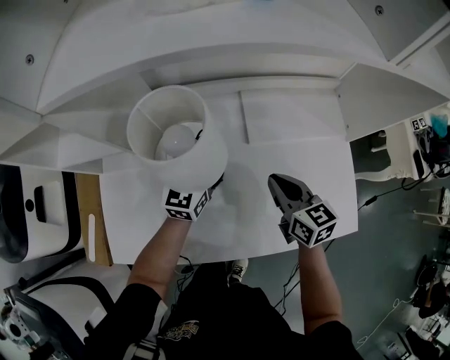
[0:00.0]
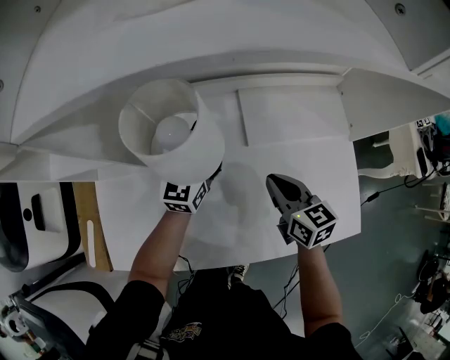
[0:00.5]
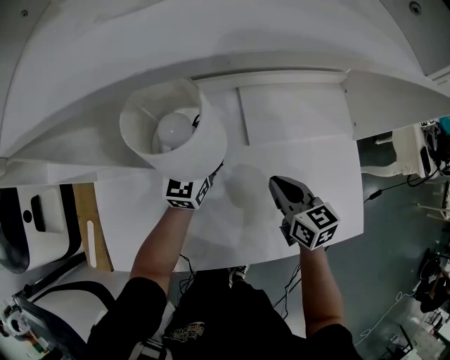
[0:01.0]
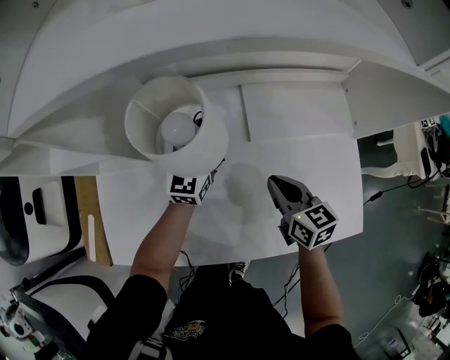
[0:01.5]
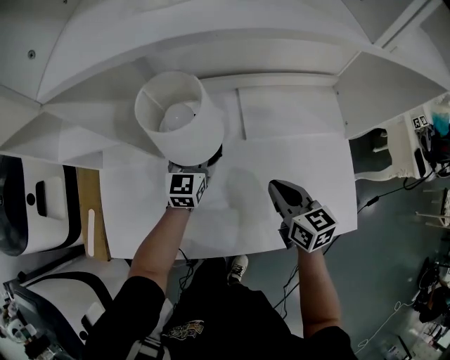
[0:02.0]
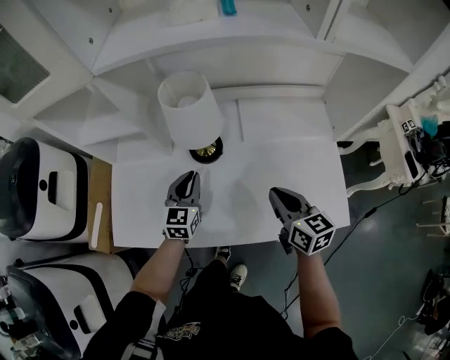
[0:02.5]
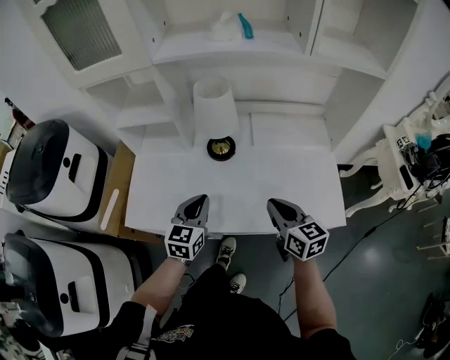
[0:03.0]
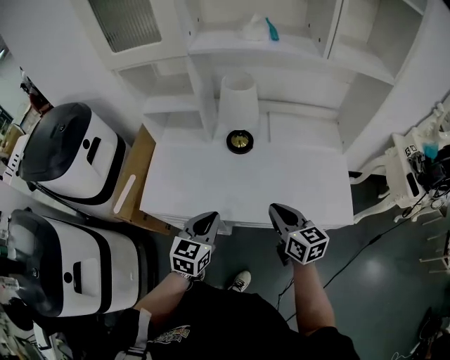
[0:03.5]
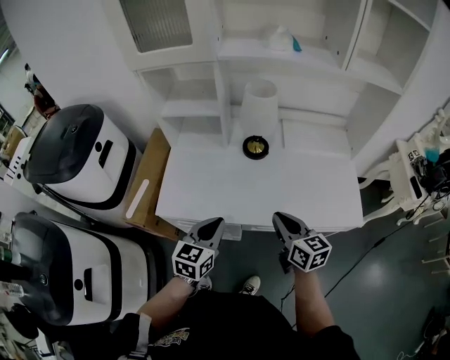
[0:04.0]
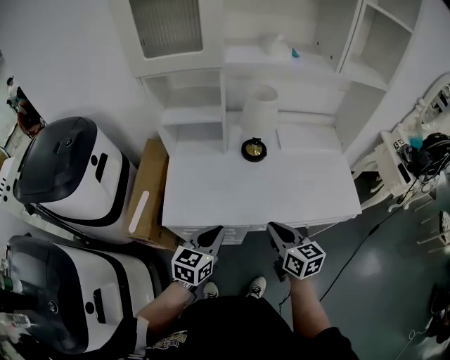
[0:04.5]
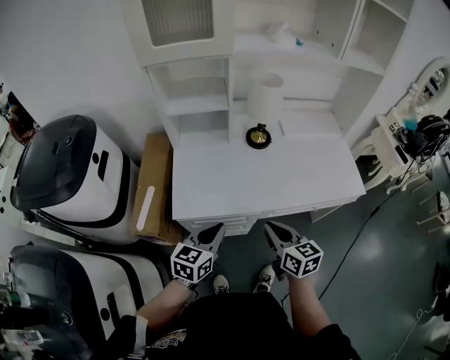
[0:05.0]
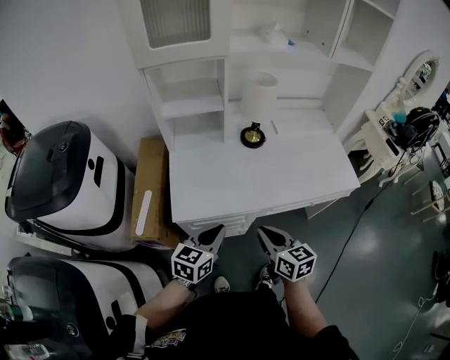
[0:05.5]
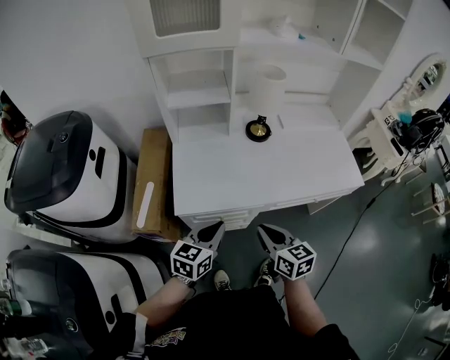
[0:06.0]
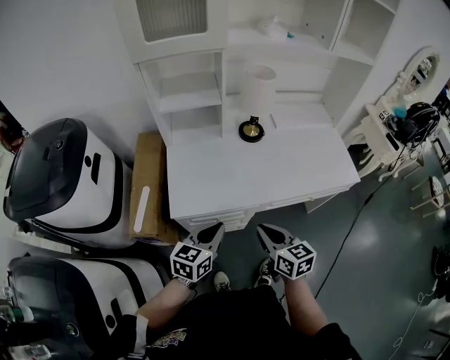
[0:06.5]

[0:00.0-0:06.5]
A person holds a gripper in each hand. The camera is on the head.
0:00.0 to 0:02.0: There are only small adjustments of the grippers.
0:02.0 to 0:04.5: The two grippers go about 40 cm backward and to the left. The left gripper closes its fingers.
0:04.5 to 0:06.5: The left gripper heads to the left, covering about 5 cm; the right gripper goes approximately 10 cm to the left and backward.

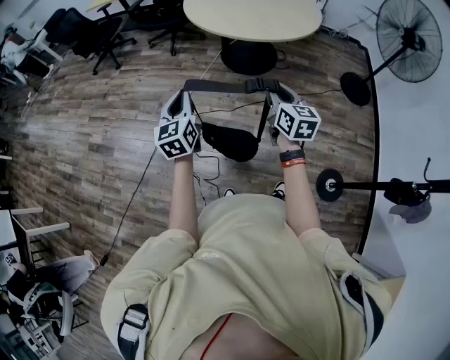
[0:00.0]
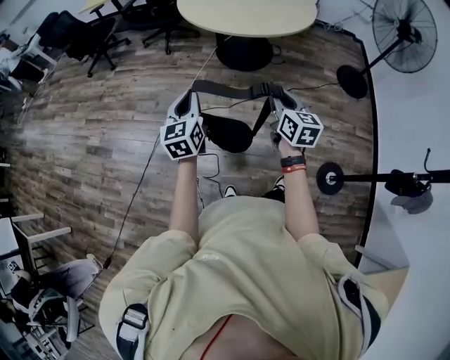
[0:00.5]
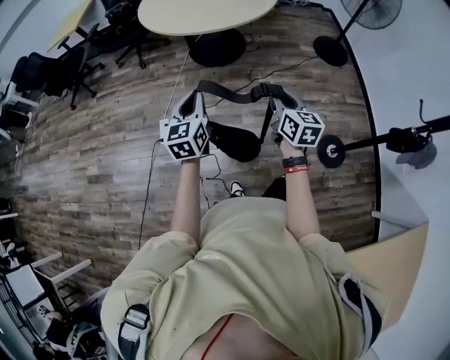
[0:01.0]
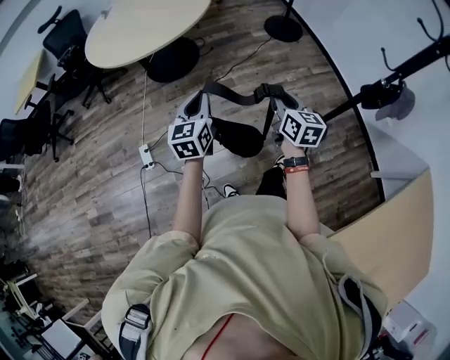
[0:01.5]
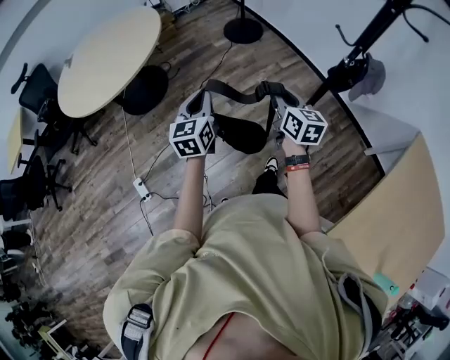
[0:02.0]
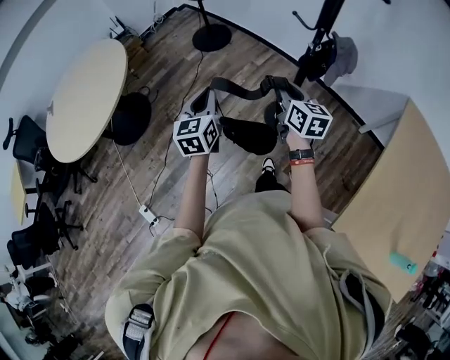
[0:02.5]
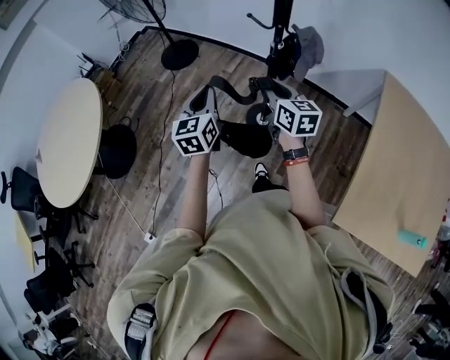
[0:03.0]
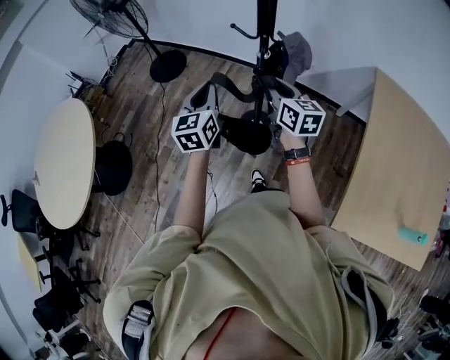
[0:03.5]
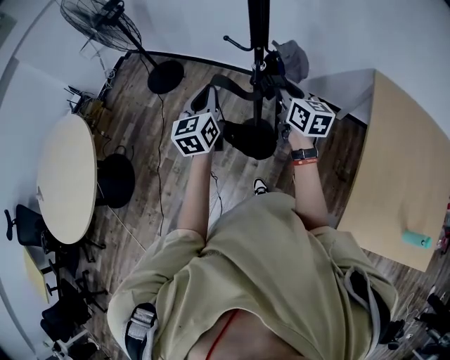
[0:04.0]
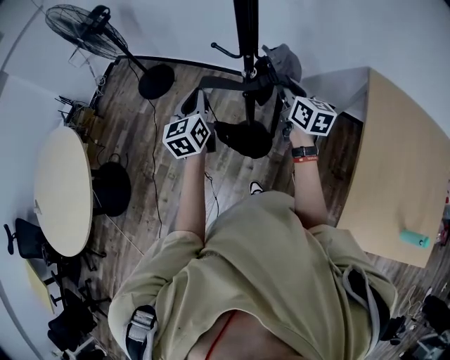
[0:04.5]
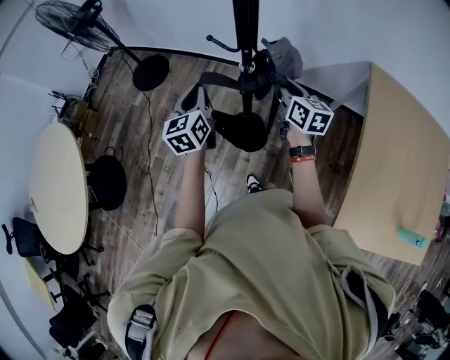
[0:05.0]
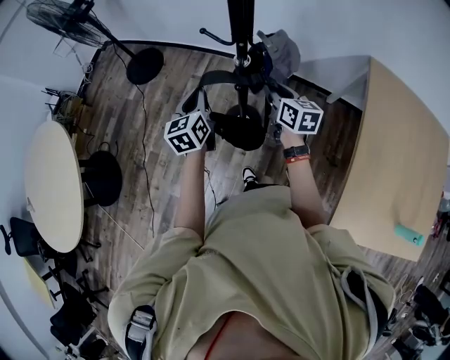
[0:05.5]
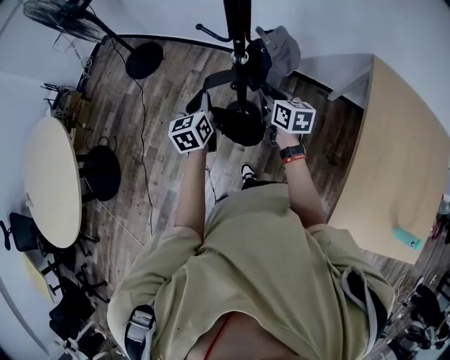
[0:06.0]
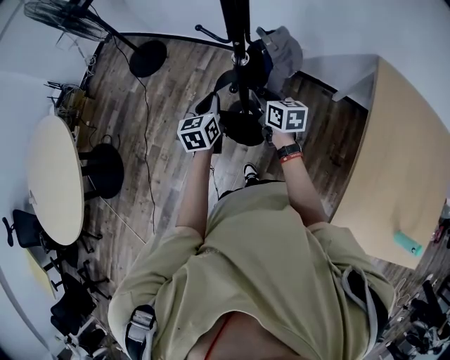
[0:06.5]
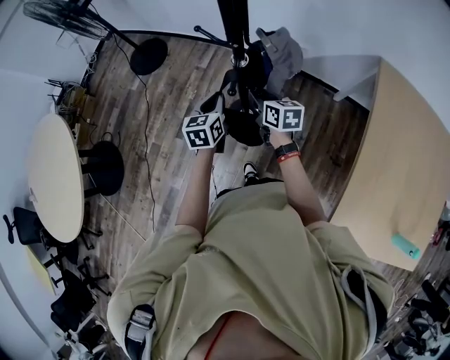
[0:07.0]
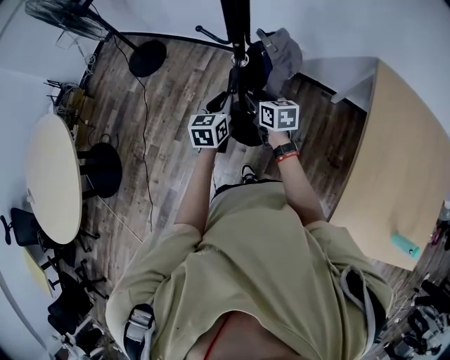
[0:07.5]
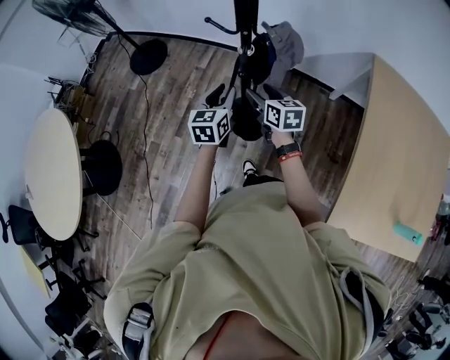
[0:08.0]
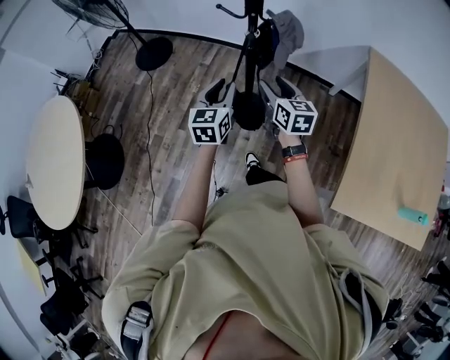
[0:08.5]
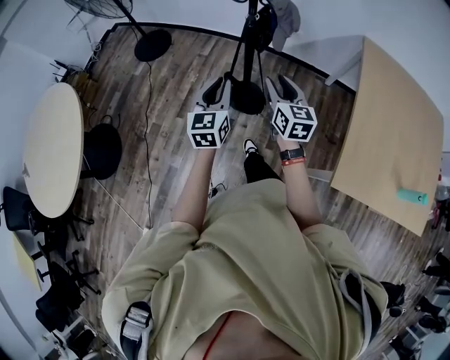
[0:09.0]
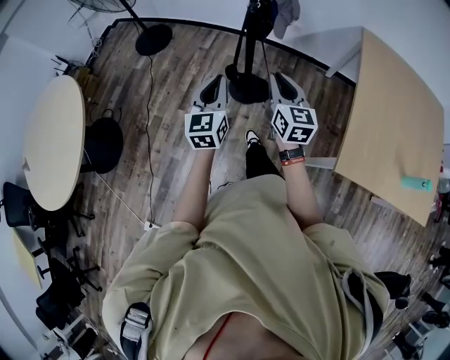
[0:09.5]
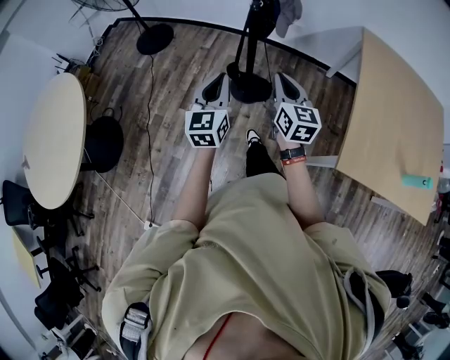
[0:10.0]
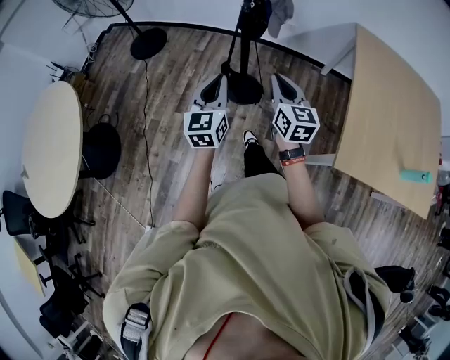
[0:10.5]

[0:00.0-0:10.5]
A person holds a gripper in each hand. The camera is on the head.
0:00.0 to 0:02.0: The pair of grippers is taken about 40 cm. The left gripper swivels some 50 degrees. The right gripper swivels roughly 50 degrees.
0:02.0 to 0:04.0: The left gripper changes place by some 40 cm, and turns by roughly 30 degrees. The right gripper changes place by approximately 40 cm, and turns by about 30 degrees.
0:04.0 to 0:06.5: Both grippers travel together downward and forward, approximately 20 cm.
0:06.5 to 0:08.5: Both grippers travel together backward and upward, approximately 20 cm. The right gripper opens its fingers. The left gripper opens.
0:08.5 to 0:10.5: Both grippers travel together backward, roughly 20 cm. The left gripper closes, while the right gripper closes up.

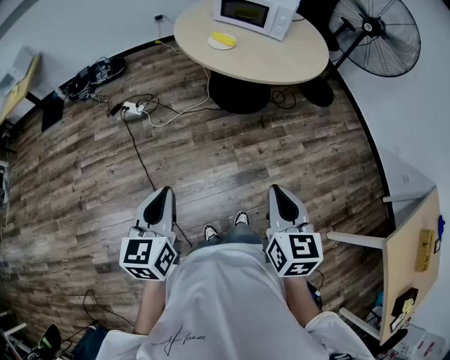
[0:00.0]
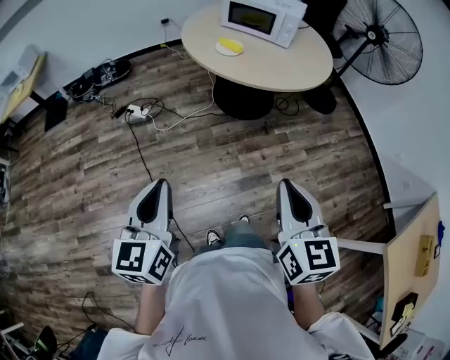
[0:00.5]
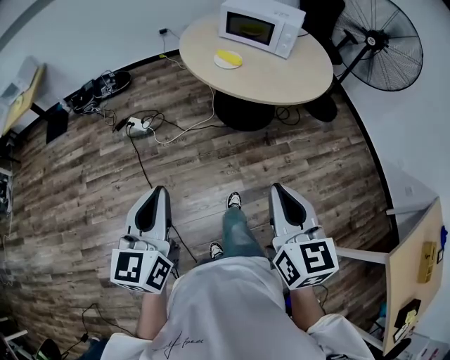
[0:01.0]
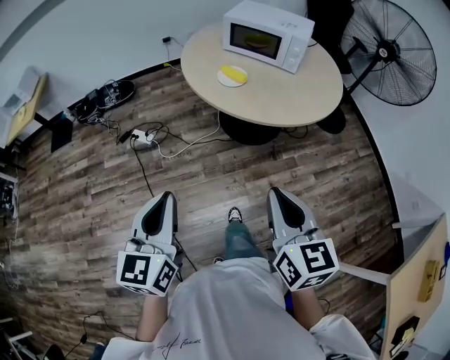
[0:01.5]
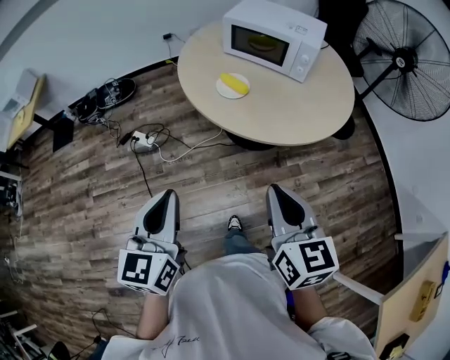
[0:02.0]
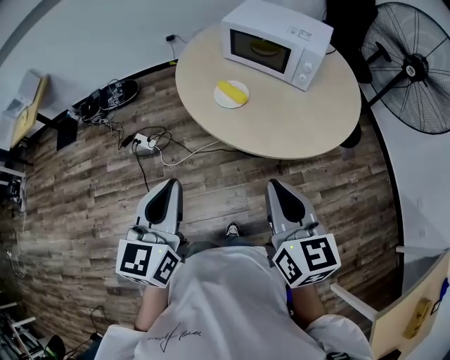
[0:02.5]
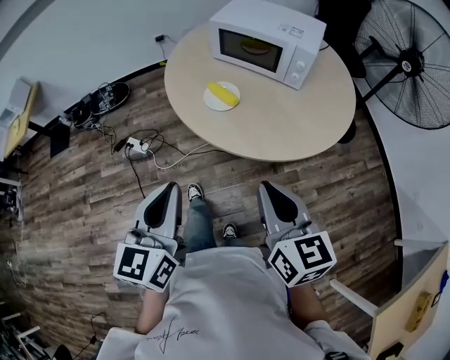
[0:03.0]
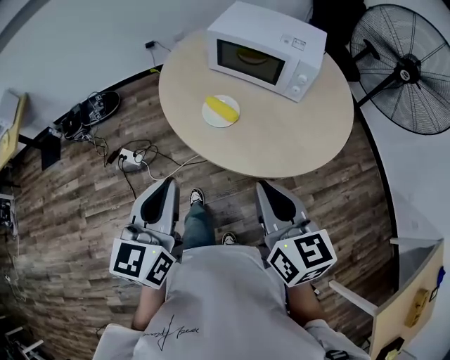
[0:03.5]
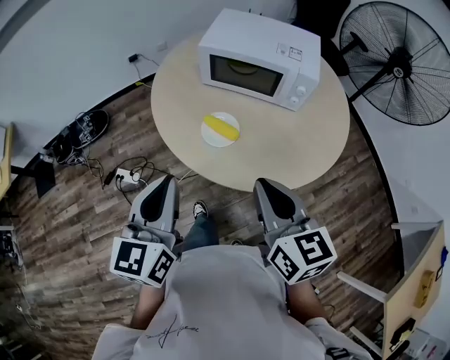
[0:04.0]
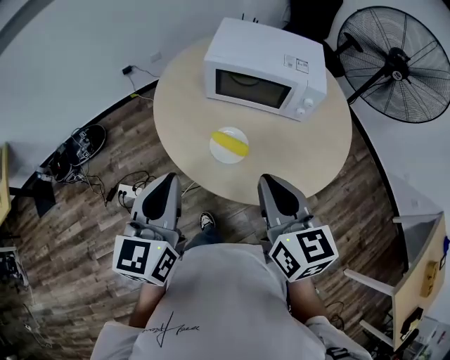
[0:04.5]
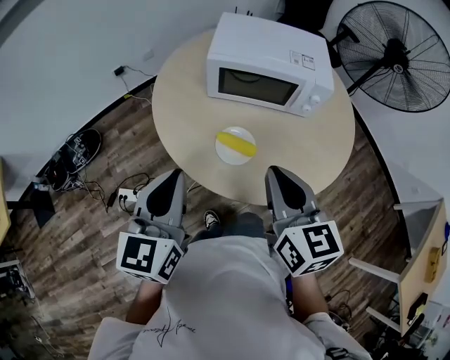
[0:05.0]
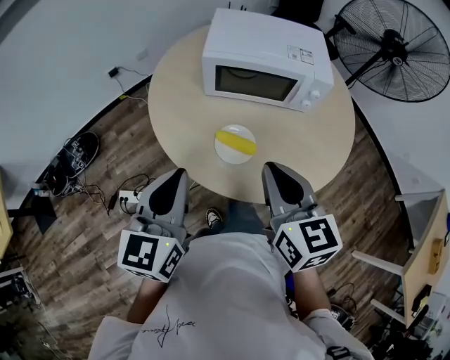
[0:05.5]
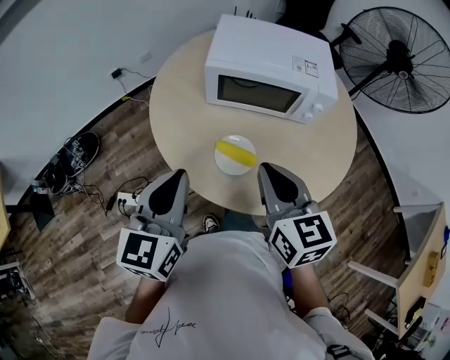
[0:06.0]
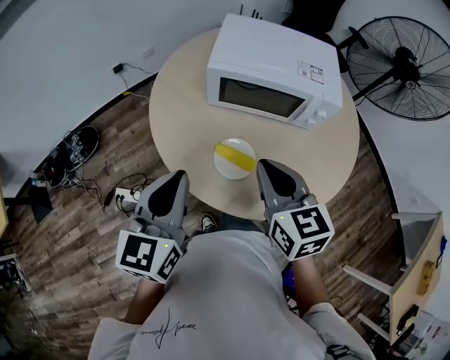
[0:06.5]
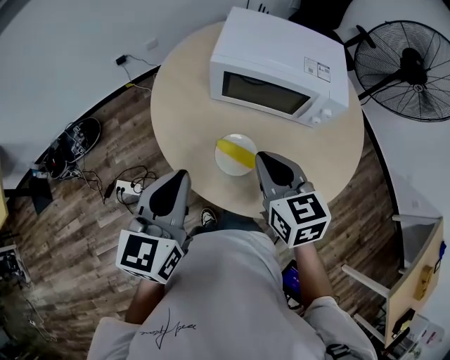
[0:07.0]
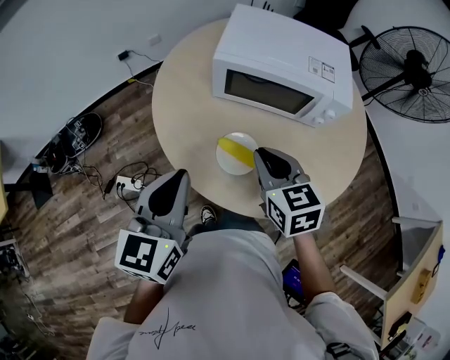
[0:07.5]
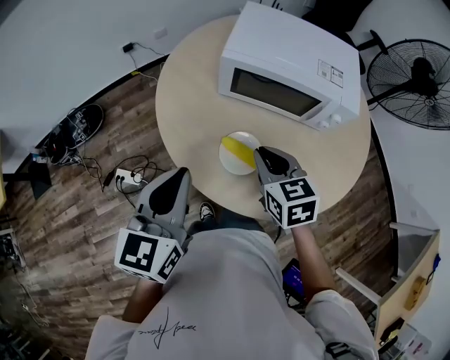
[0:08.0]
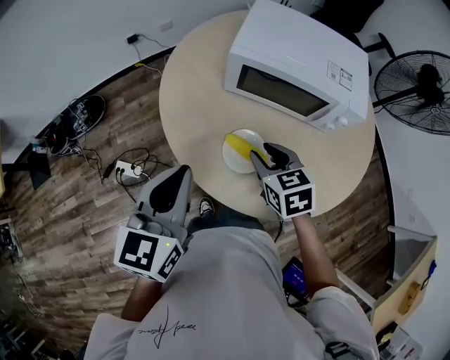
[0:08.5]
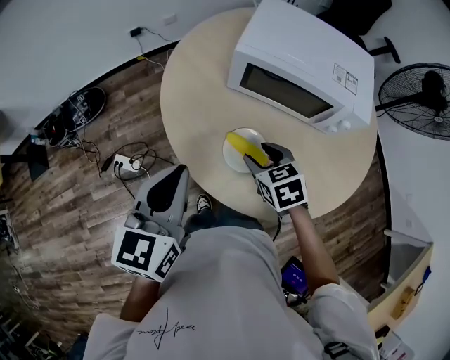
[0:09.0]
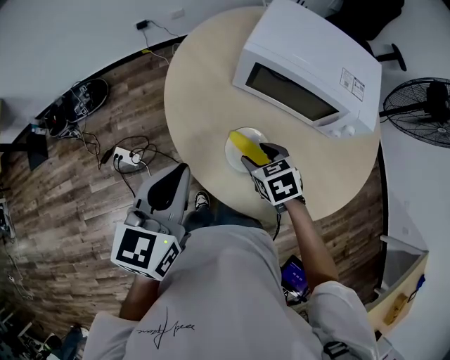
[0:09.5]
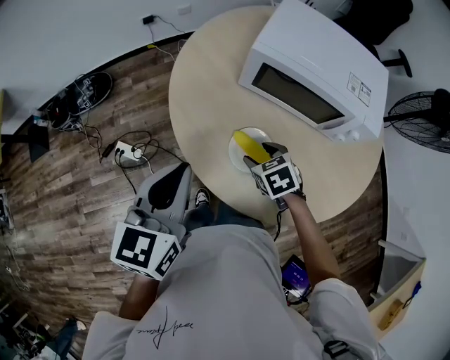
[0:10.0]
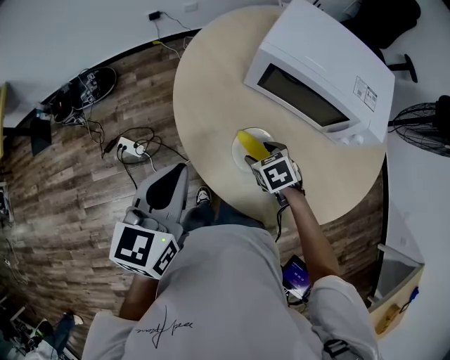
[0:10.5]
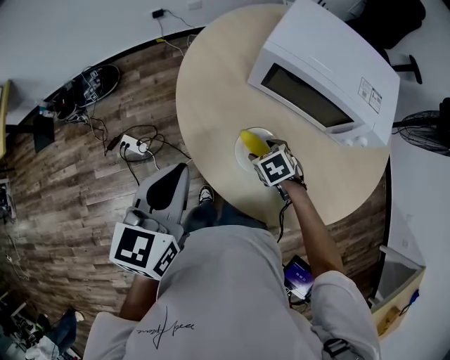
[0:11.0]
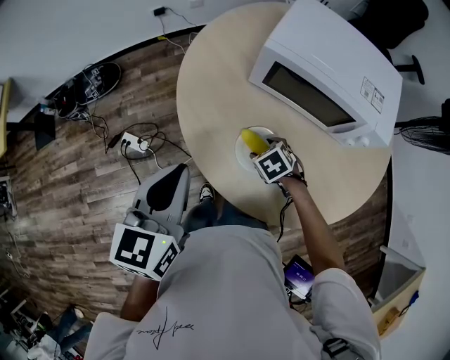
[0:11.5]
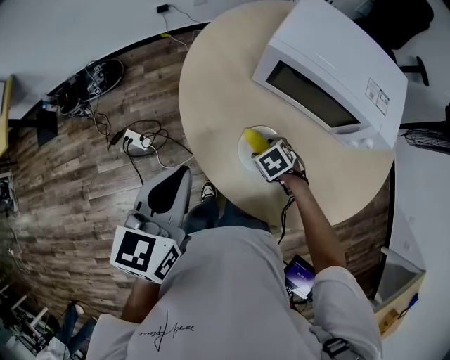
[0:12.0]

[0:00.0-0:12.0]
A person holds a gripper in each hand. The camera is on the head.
0:00.0 to 0:02.0: Both grippers travel together forward, some 30 cm.
0:02.0 to 0:04.0: The two grippers go approximately 30 cm forward.
0:04.0 to 0:06.0: Both grippers travel together forward and to the left, some 15 cm.
0:06.0 to 0:08.0: The right gripper goes roughly 15 cm downward and forward, and turns by approximately 20 degrees.
0:08.0 to 0:10.0: The right gripper heads downward, covering about 15 cm, swivels about 30 degrees, and opens.
0:10.0 to 0:12.0: The right gripper travels downward by some 10 cm.
